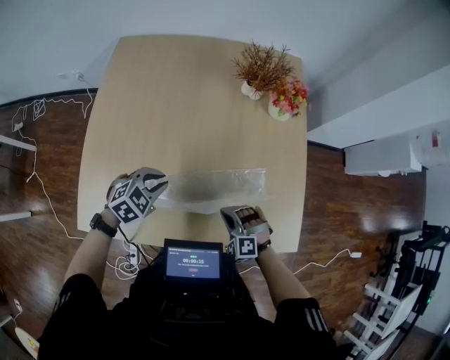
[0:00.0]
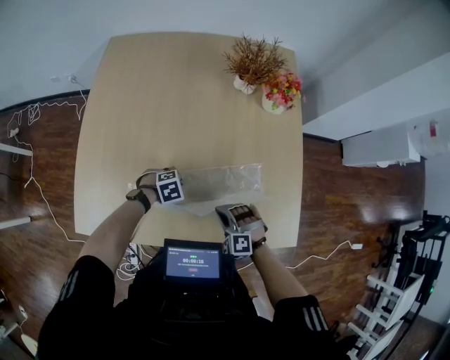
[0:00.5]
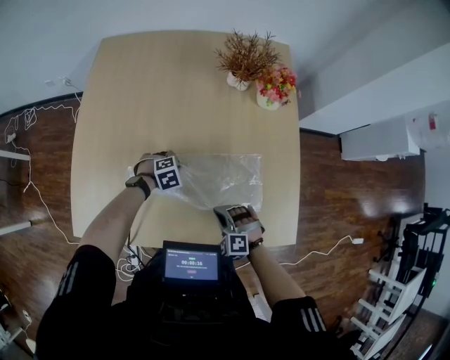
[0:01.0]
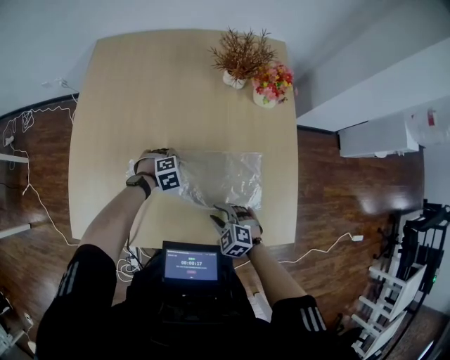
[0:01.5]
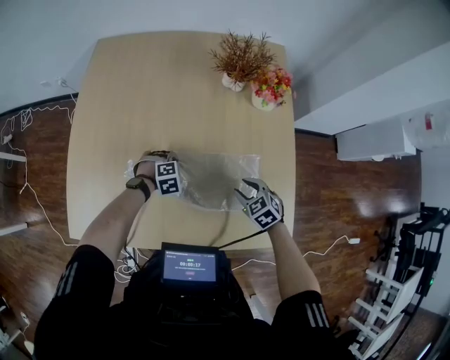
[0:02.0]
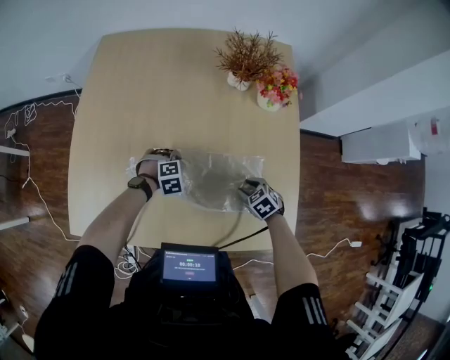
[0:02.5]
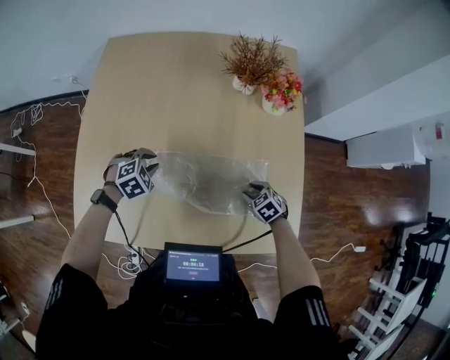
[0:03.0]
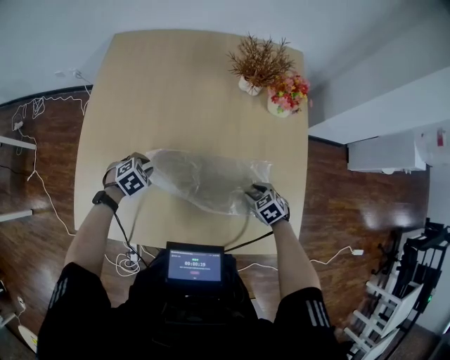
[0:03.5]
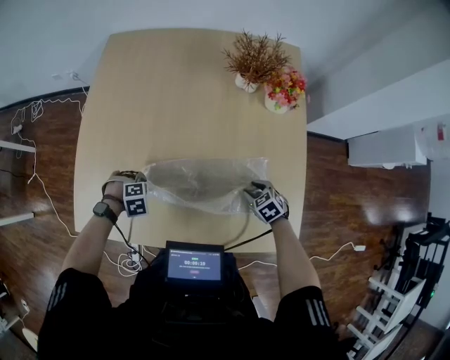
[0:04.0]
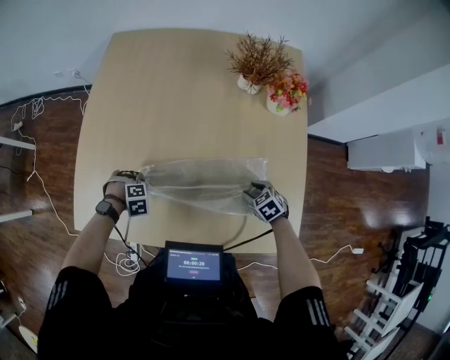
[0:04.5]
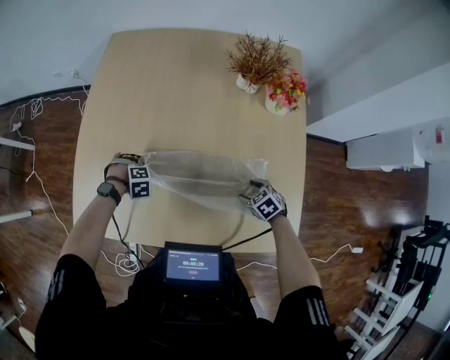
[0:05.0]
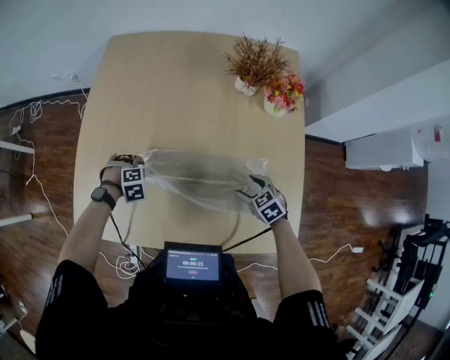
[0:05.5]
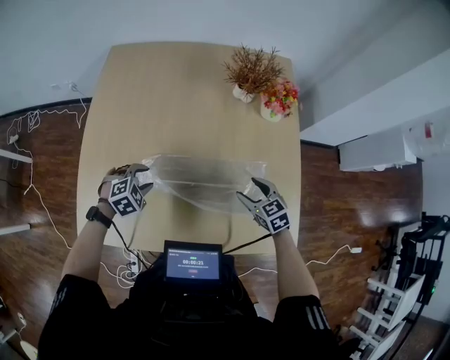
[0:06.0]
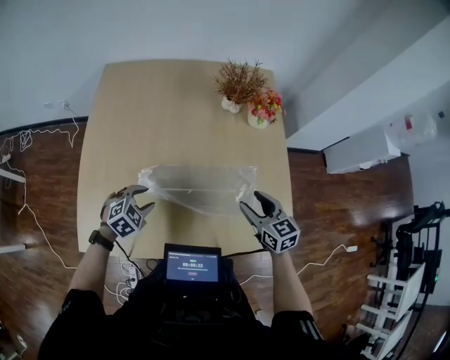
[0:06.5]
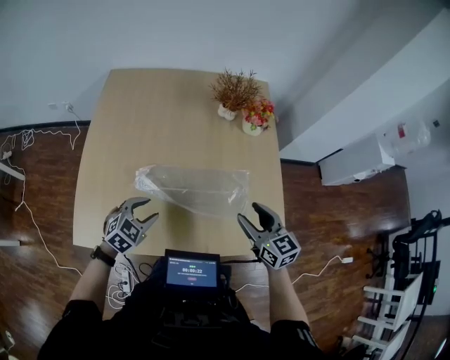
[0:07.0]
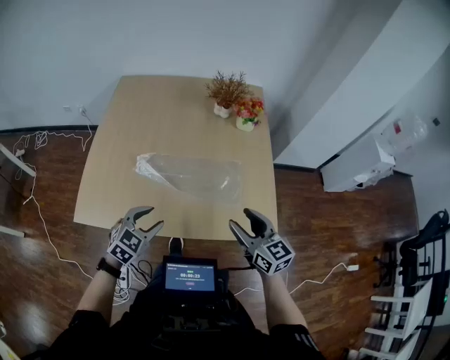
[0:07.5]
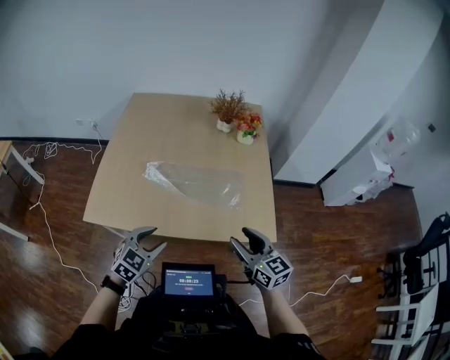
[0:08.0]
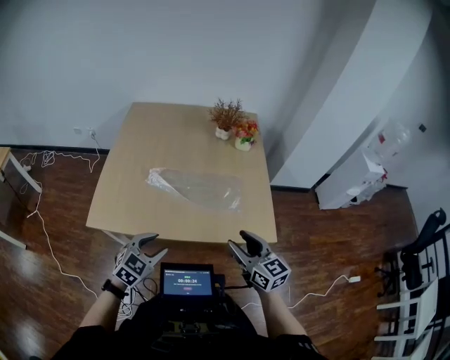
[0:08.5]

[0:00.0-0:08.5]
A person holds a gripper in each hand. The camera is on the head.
0:00.0 to 0:02.0: The left gripper heads downward, covering some 20 cm, and turns by approximately 30 degrees. Meanwhile the right gripper changes place by some 15 cm, rolls clockwise, seen from behind, by approximately 40 degrees, and opens.
0:02.0 to 0:04.0: The right gripper shifts roughly 5 cm downward. The left gripper travels upward and back again, approximately 10 cm each way, and opens up.
0:04.0 to 0:06.5: The left gripper shifts about 15 cm upward, and tips its fingers upward by some 30 degrees, while the right gripper moves upward, about 20 cm, and tips its fingers upward by about 40 degrees.
0:06.5 to 0:08.5: The grippers both shift backward and upward by some 30 cm. The left gripper rotates some 30 degrees.

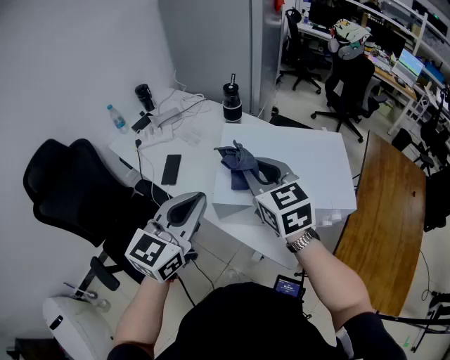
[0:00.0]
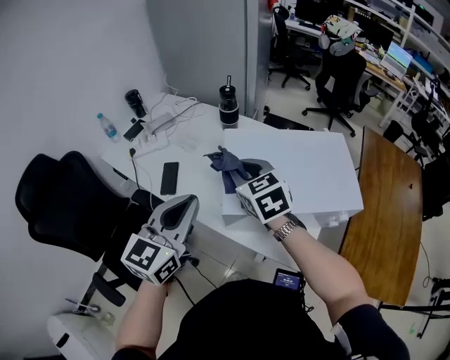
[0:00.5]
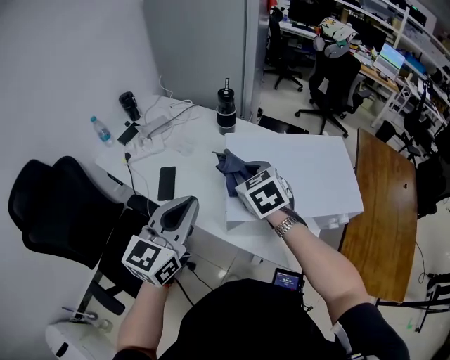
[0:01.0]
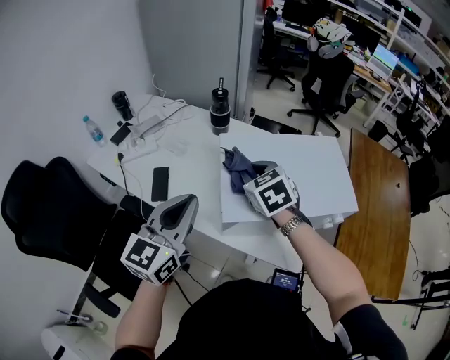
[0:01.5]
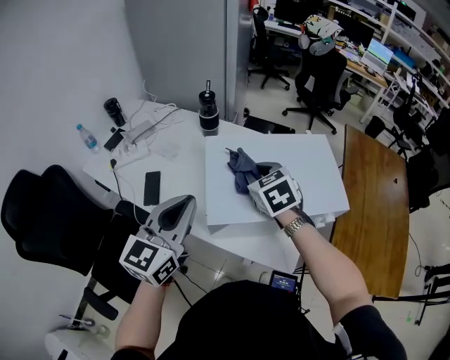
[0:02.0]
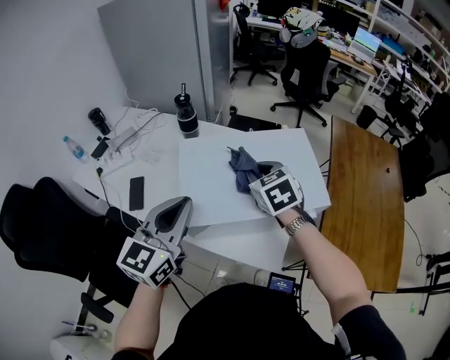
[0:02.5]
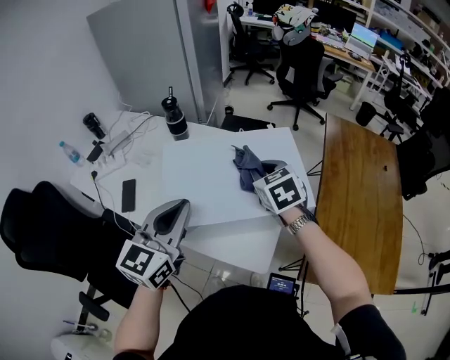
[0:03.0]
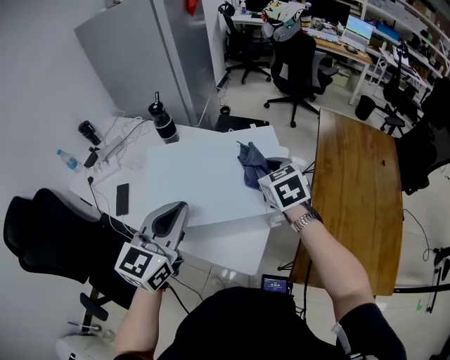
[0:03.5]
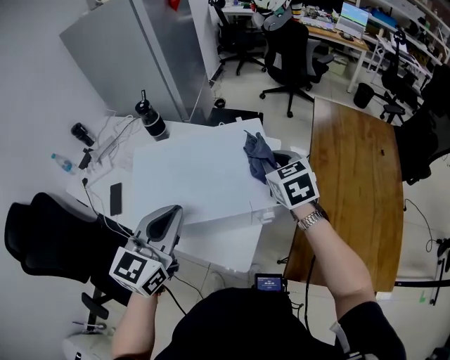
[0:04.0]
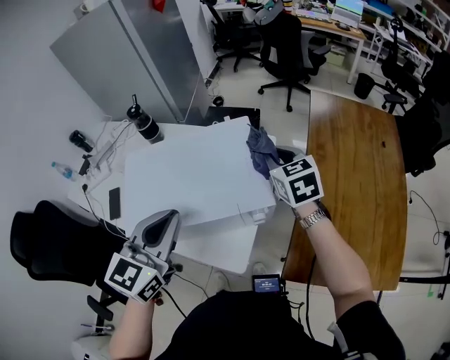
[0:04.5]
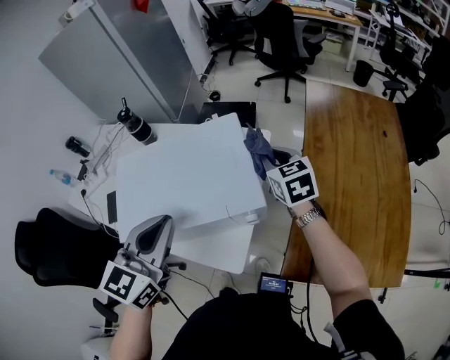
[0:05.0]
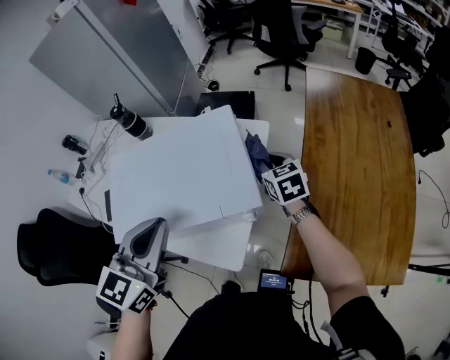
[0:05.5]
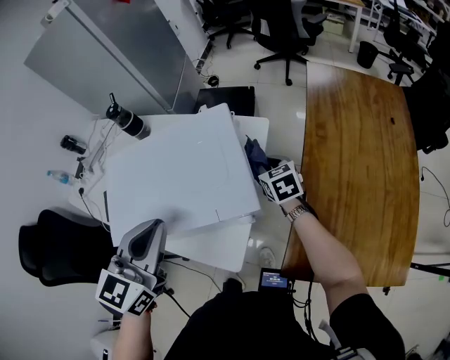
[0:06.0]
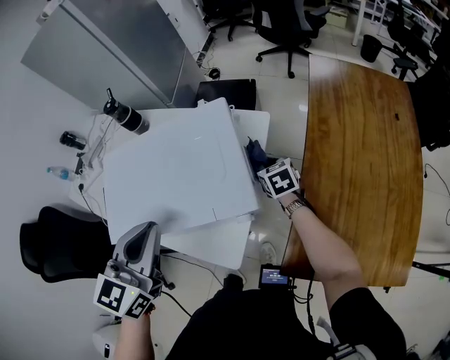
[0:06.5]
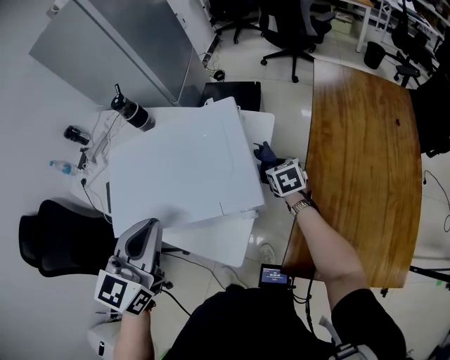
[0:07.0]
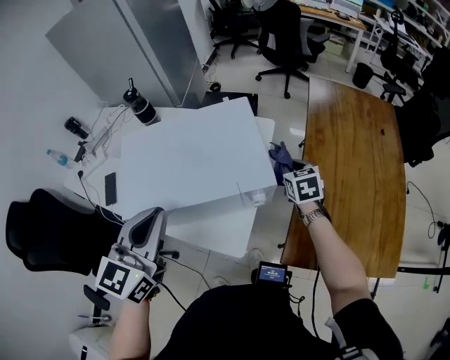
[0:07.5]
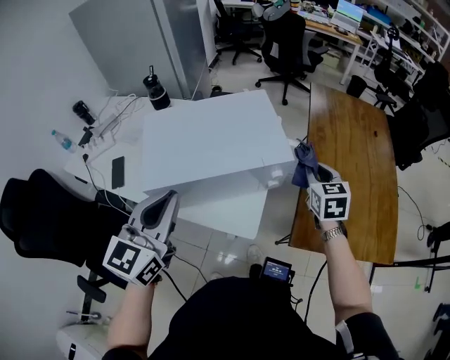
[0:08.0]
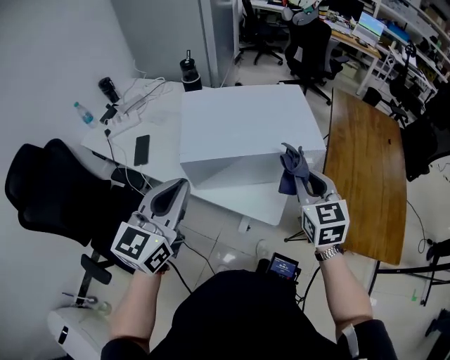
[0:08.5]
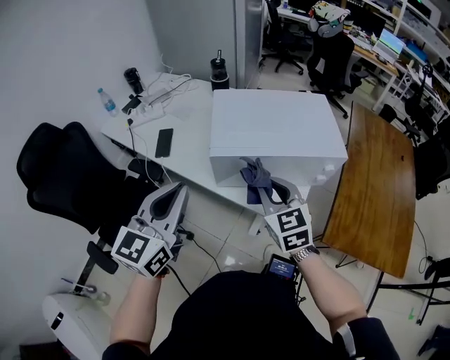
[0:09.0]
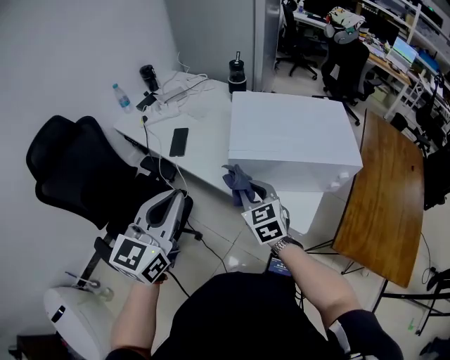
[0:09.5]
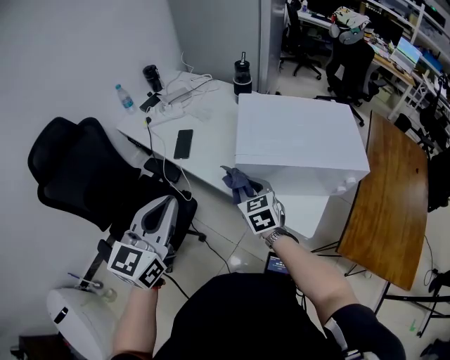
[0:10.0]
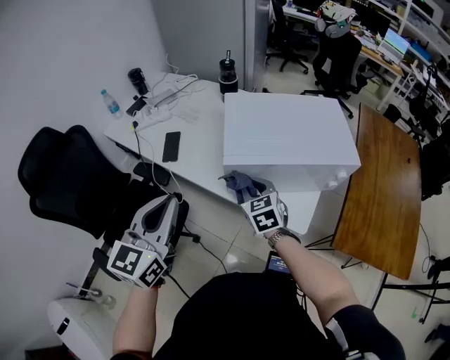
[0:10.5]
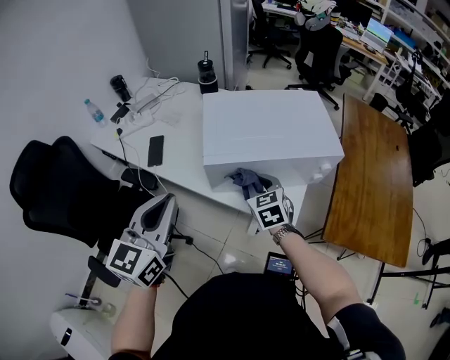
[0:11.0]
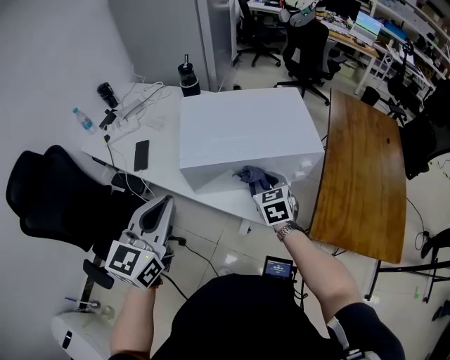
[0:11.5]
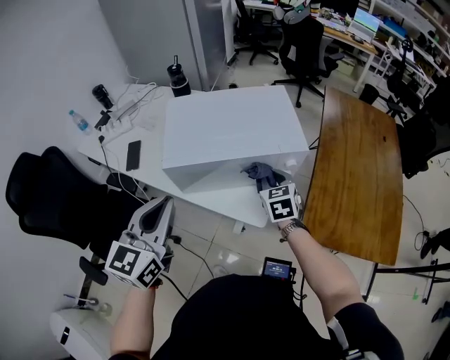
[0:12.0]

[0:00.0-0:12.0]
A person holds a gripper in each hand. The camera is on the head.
0:00.0 to 0:02.0: The left gripper goes approximately 5 cm forward. The right gripper goes roughly 10 cm downward and forward, and turns by approximately 20 degrees.
0:02.0 to 0:04.0: The two grippers go some 25 cm to the right.
0:04.0 to 0:06.0: The left gripper moves to the right, approximately 5 cm, while the right gripper goes approximately 20 cm downward.
0:06.0 to 0:08.0: The right gripper goes roughly 20 cm backward and upward, and rotates roughly 20 degrees, while the left gripper is displaced backward and to the left by some 15 cm.
0:08.0 to 0:10.0: The left gripper changes place by roughly 25 cm, while the right gripper moves about 50 cm, and turns by about 30 degrees.
0:10.0 to 0:12.0: The right gripper heads to the right, covering some 30 cm. Meanwhile the left gripper moves to the right, about 20 cm.

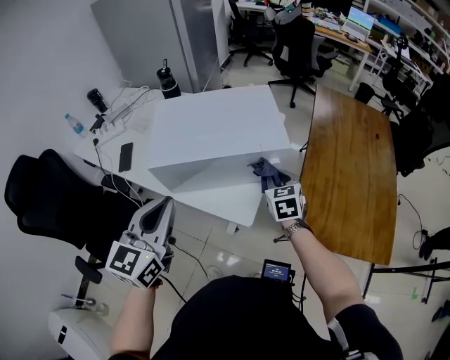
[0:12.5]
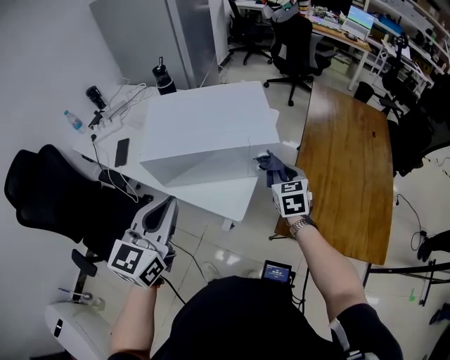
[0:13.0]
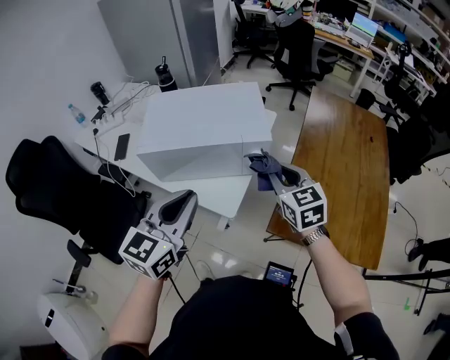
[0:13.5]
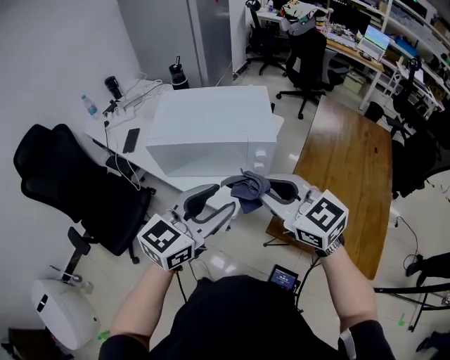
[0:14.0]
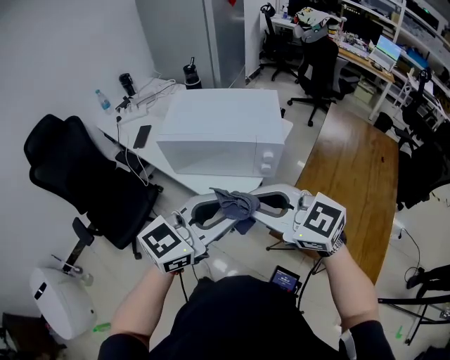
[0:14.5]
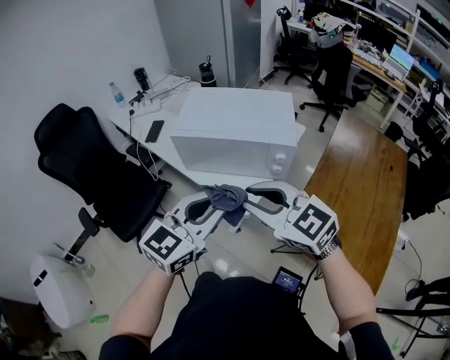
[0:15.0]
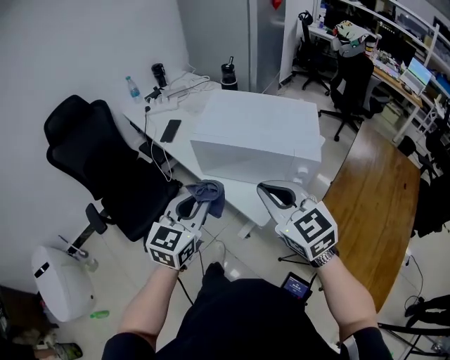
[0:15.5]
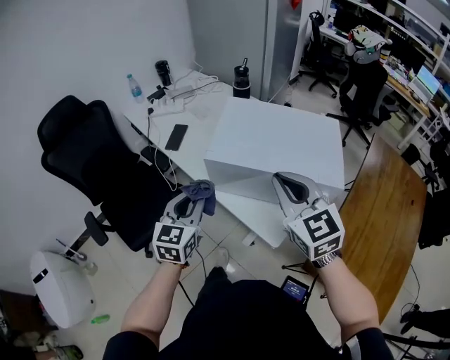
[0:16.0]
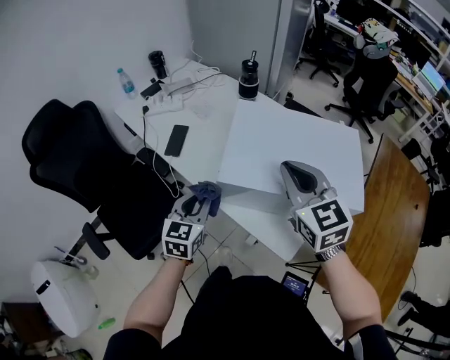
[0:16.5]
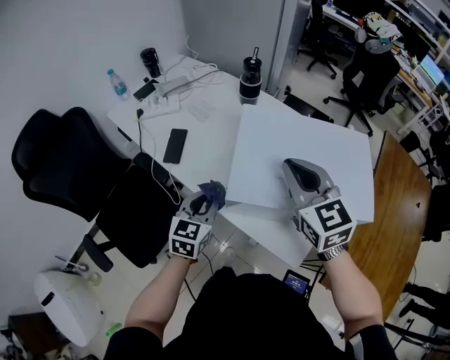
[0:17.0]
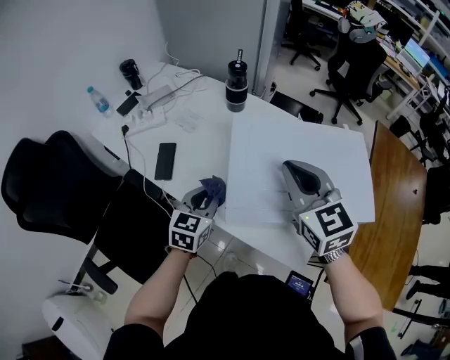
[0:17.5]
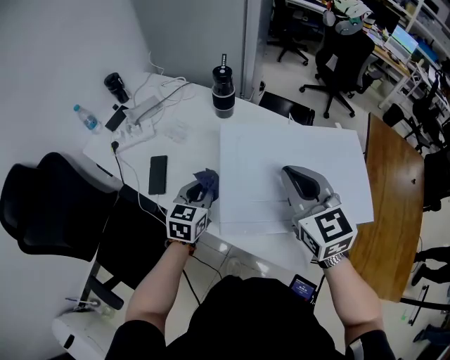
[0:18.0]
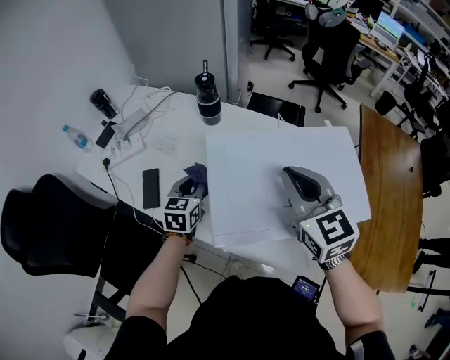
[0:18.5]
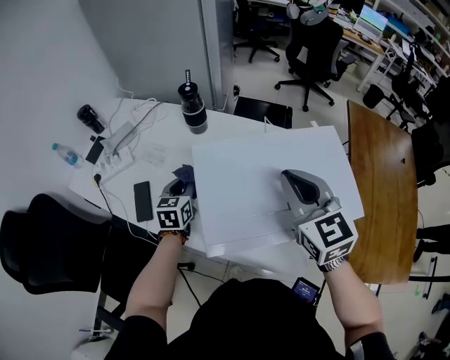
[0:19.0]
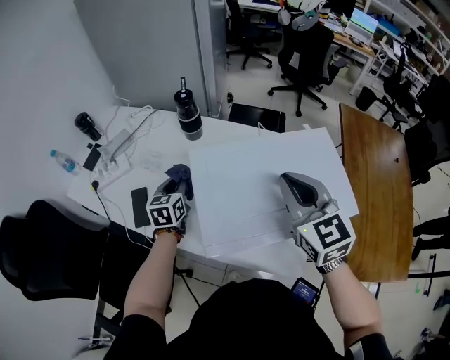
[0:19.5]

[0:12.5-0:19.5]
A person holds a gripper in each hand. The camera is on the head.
0:12.5 to 0:14.5: The right gripper moves backward and upward, approximately 30 cm, and changes its angle by about 70 degrees, while the left gripper goes approximately 20 cm to the right and backward, swivels roughly 20 degrees, and opens.
0:14.5 to 0:16.0: The left gripper heads to the left, forward and downward, covering about 35 cm, and changes its angle by roughly 50 degrees; the right gripper moves forward, approximately 20 cm, and turns by some 30 degrees.
0:16.0 to 0:17.5: The left gripper goes about 25 cm forward and downward, and rotates approximately 20 degrees; the right gripper moves forward, some 20 cm.
0:17.5 to 0:19.5: The right gripper heads to the right, covering roughly 10 cm; the left gripper moves forward, about 15 cm.
